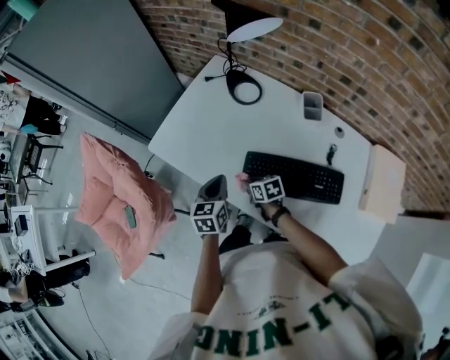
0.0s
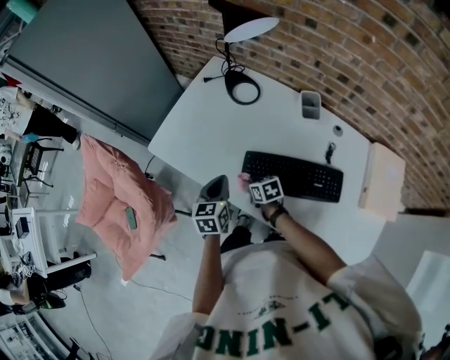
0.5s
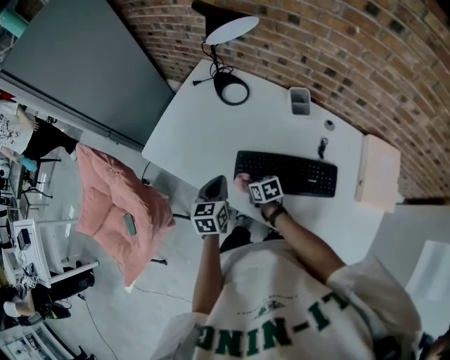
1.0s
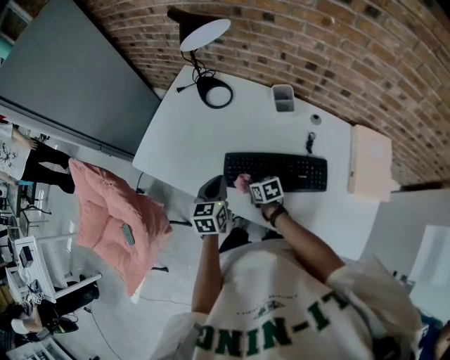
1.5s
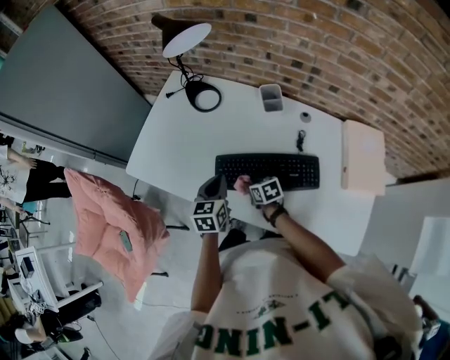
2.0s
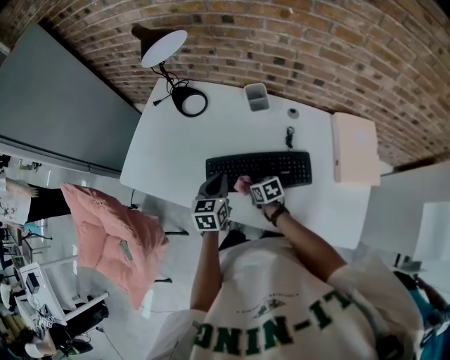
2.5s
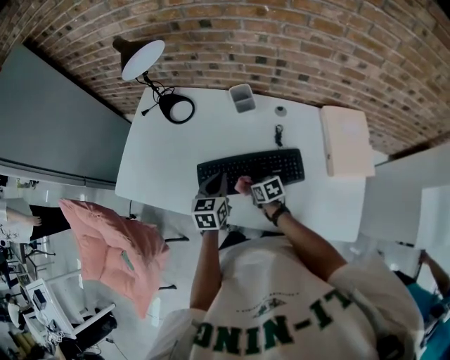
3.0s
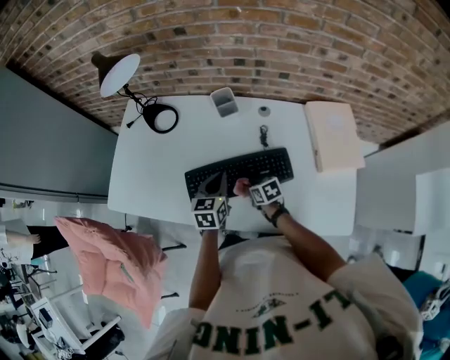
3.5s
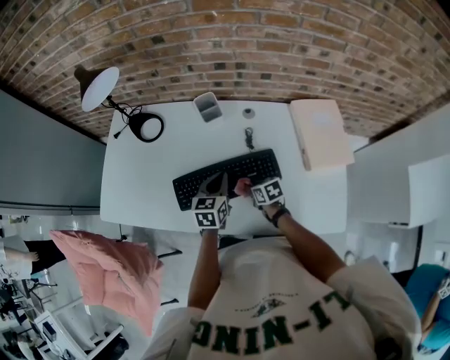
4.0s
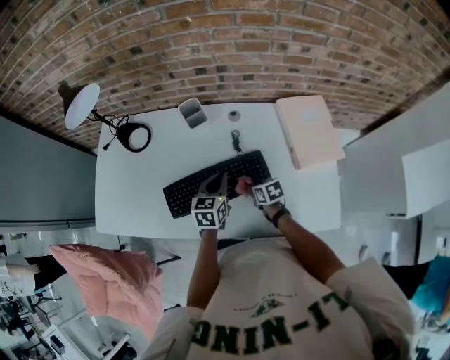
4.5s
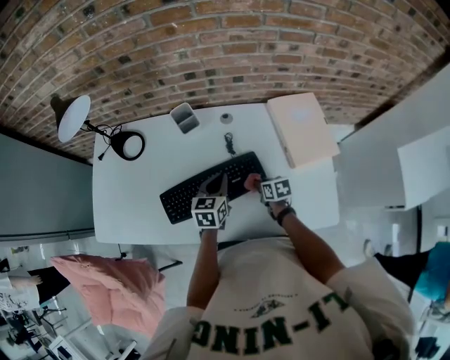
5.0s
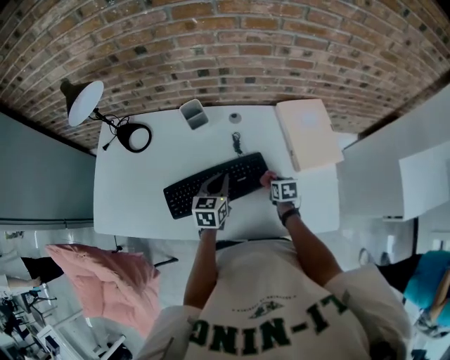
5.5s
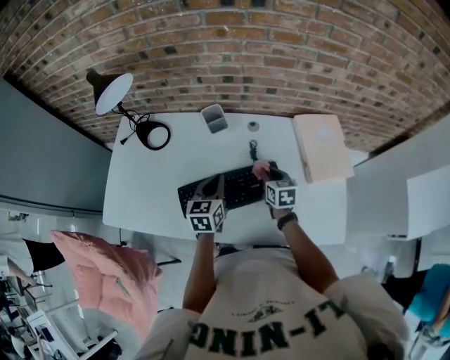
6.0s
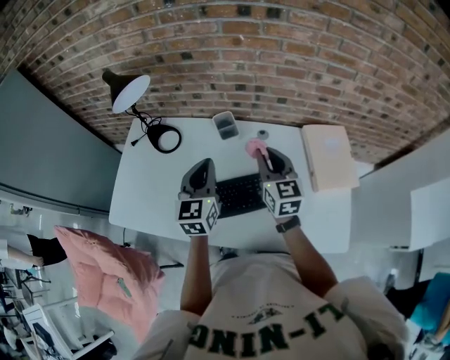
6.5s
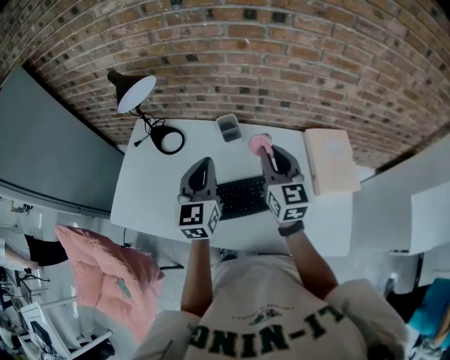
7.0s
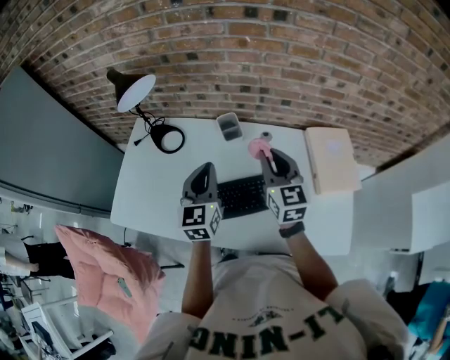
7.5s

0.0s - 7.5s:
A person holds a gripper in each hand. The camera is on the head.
0.0s - 2.0s: The grippers both shift to the right by some 10 cm.
2.0s - 4.0s: The two grippers go about 15 cm to the right. The left gripper changes its angle by about 20 degrees.
4.0s - 5.5s: The right gripper heads to the right, covering some 15 cm, and swivels roughly 30 degrees.
5.5s - 7.5s: The left gripper travels upward and to the left by roughly 25 cm, and rotates some 30 degrees; the right gripper goes some 40 cm upward and to the left, and angles its fingers upward, by some 50 degrees.

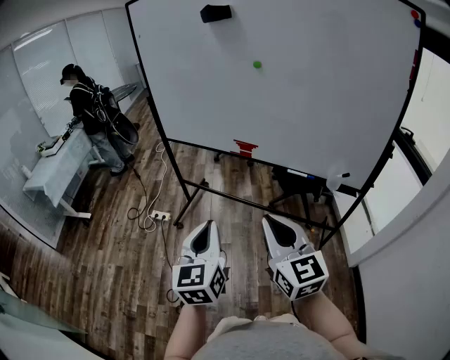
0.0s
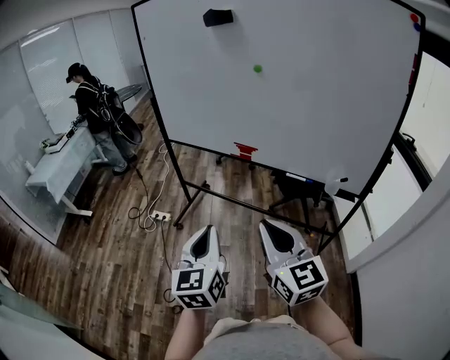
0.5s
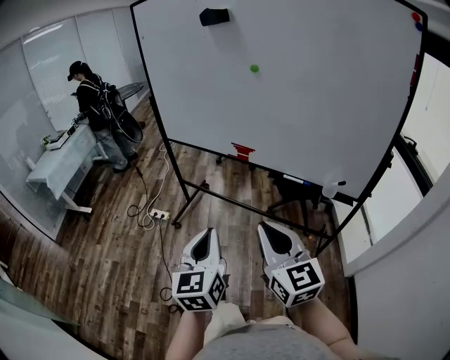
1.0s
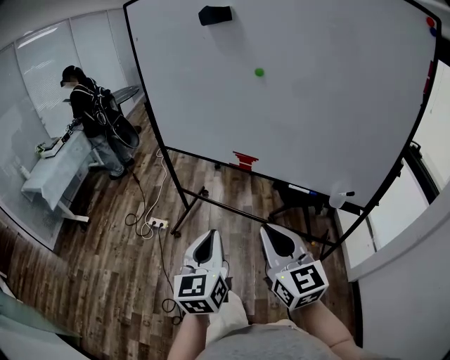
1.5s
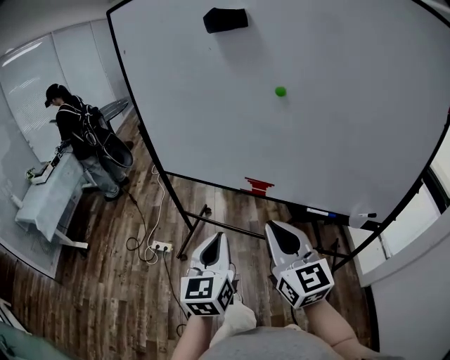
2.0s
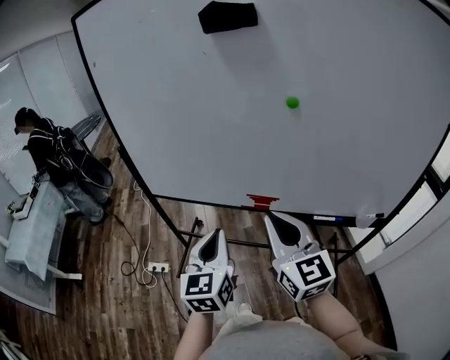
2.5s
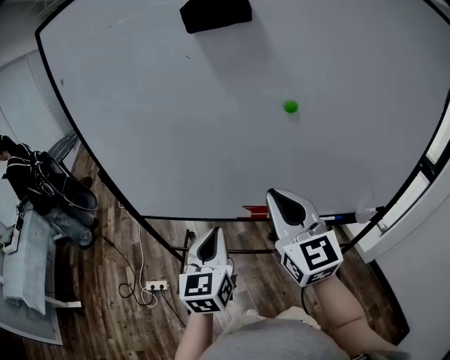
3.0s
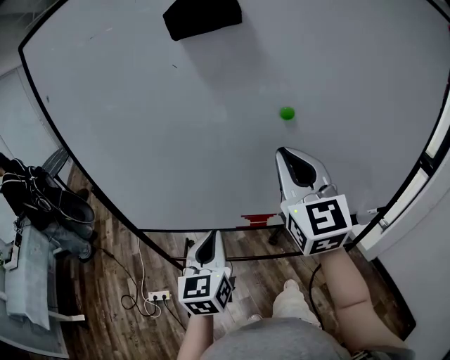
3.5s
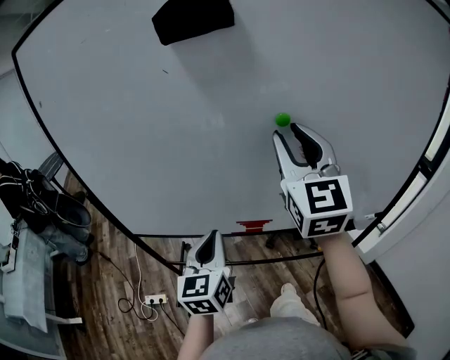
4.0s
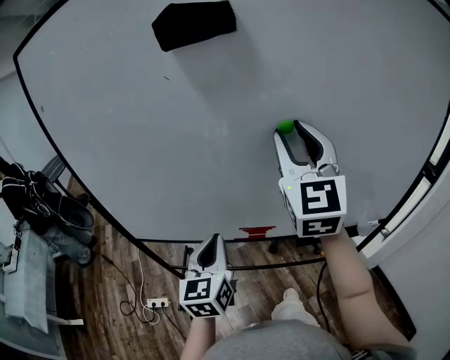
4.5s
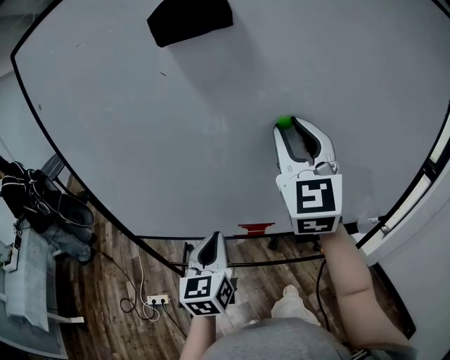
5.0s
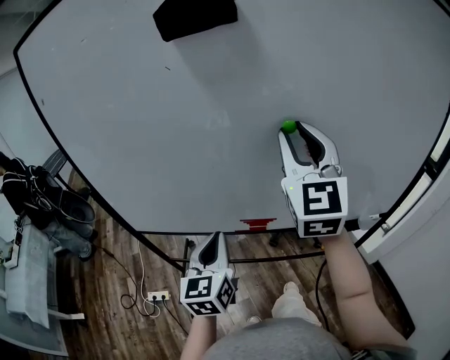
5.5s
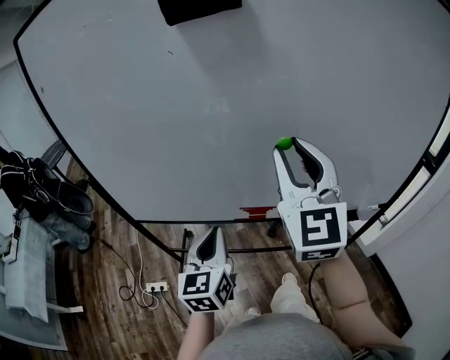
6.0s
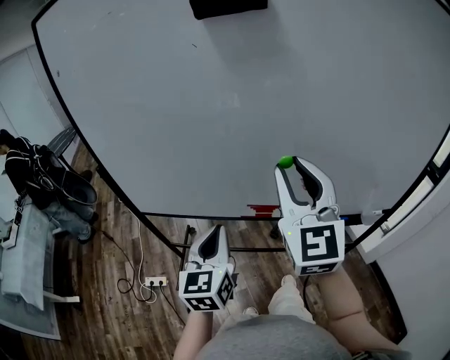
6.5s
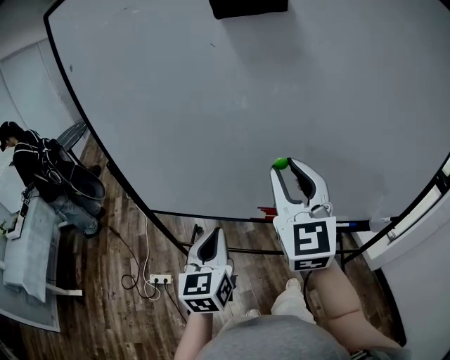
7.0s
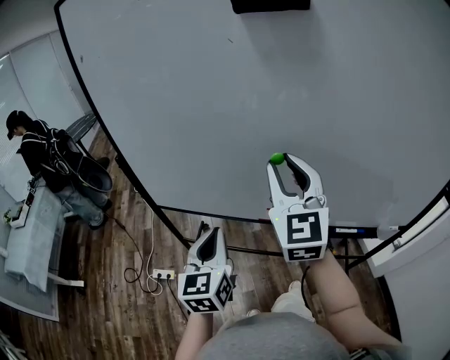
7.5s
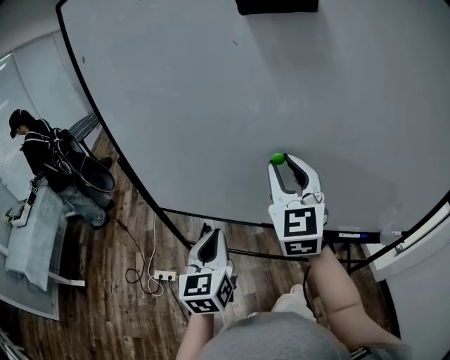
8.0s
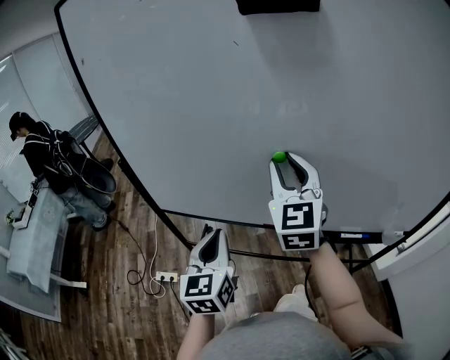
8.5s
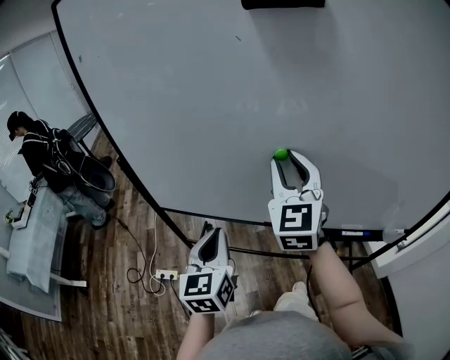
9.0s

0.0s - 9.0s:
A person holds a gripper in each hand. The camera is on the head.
0.0s - 2.0s: The grippers both shift forward by about 20 cm.
2.0s - 4.5s: The left gripper changes place by about 25 cm. Meanwhile the right gripper moves approximately 35 cm, rotates some 50 degrees, and opens its fingers.
4.5s - 7.0s: The right gripper heads downward, to the left and backward, covering roughly 15 cm. The left gripper moves to the left and backward, approximately 5 cm.
7.0s - 9.0s: The right gripper travels forward by approximately 10 cm.

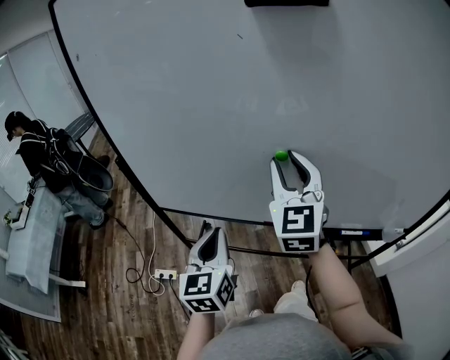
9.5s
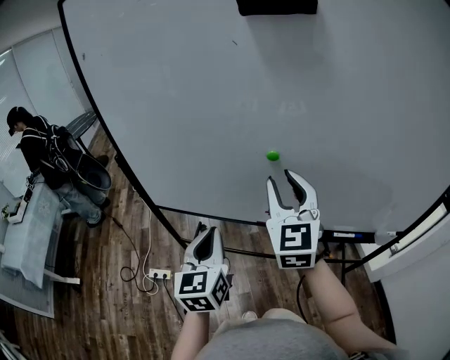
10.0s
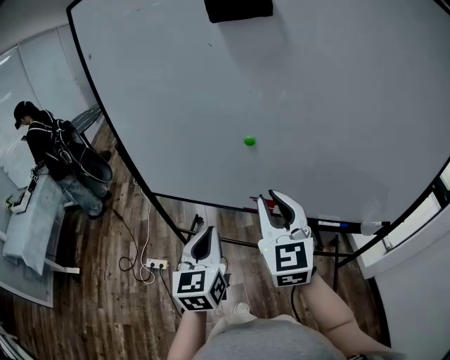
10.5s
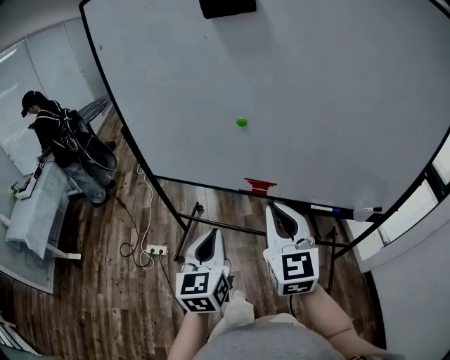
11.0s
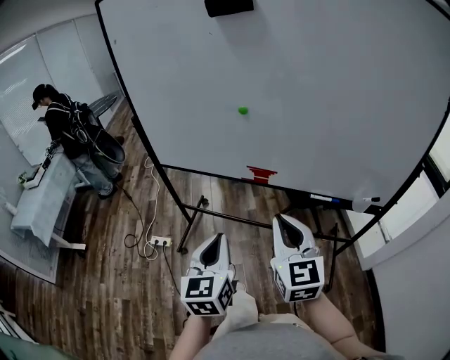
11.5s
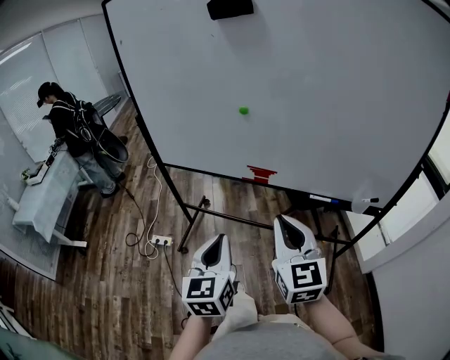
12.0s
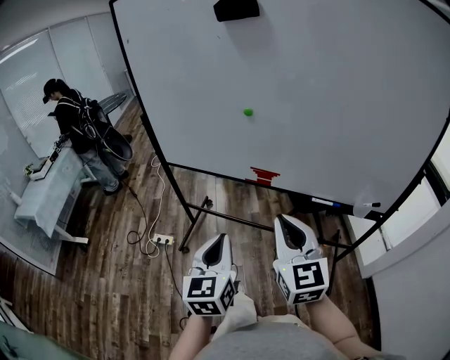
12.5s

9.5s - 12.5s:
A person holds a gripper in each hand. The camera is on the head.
9.5s - 11.0s: The left gripper goes some 20 cm backward and to the right, while the right gripper is displaced backward by roughly 25 cm, and closes its fingers.
11.0s - 12.5s: The two grippers go some 10 cm backward.

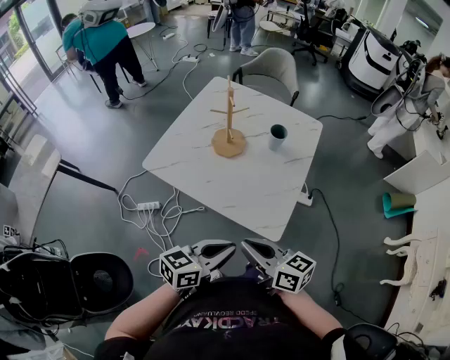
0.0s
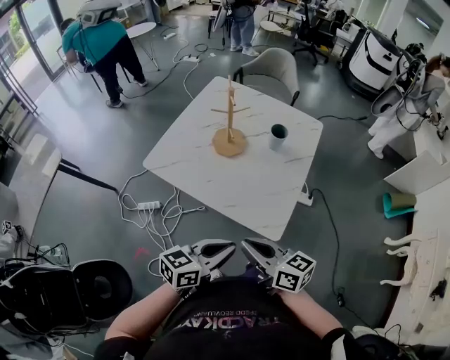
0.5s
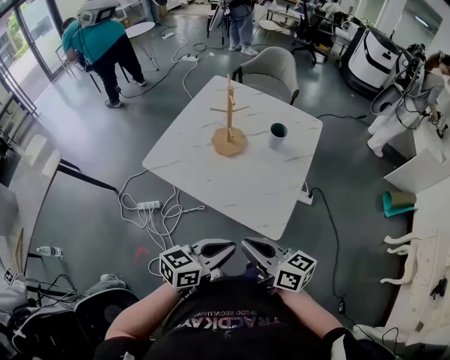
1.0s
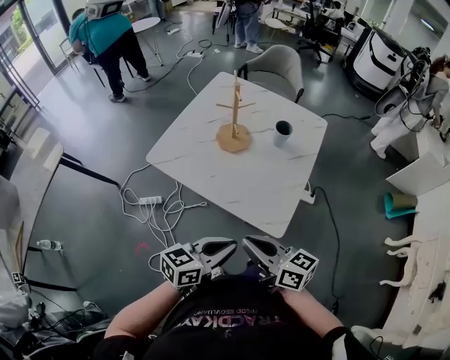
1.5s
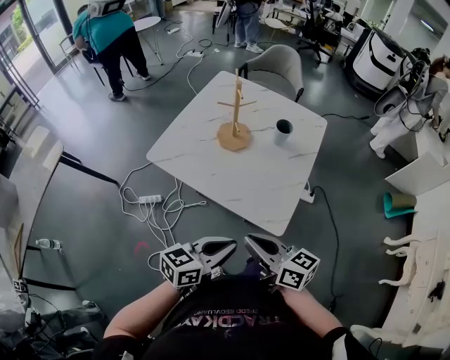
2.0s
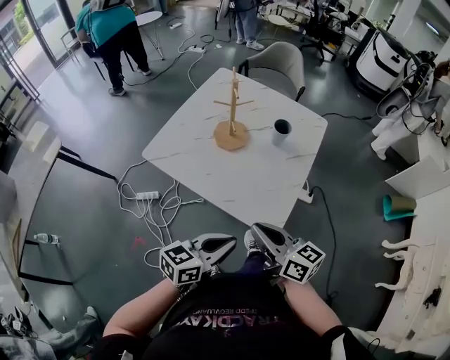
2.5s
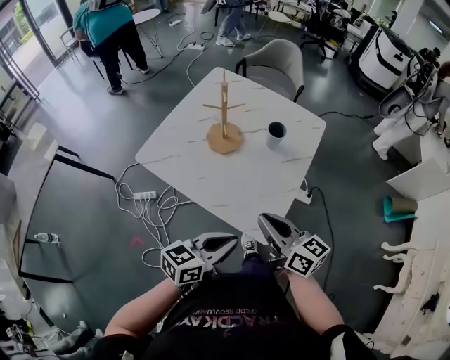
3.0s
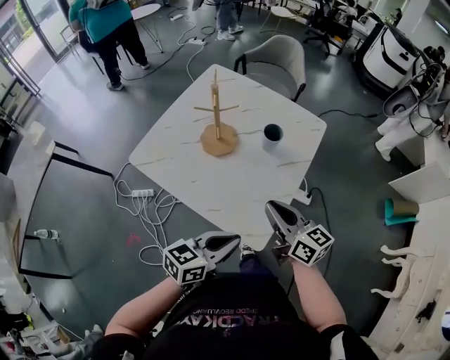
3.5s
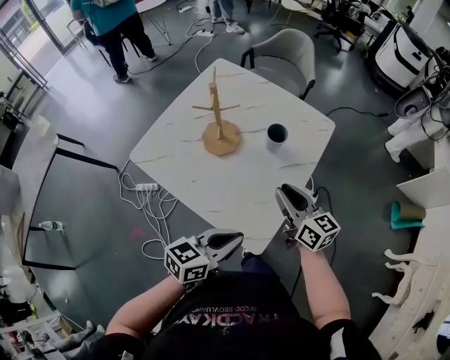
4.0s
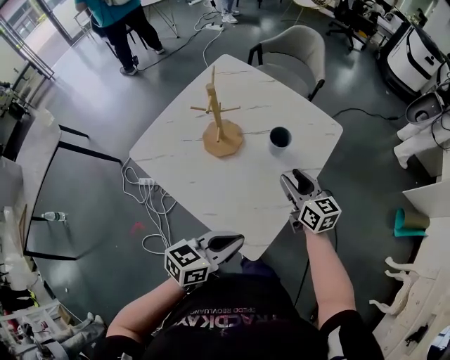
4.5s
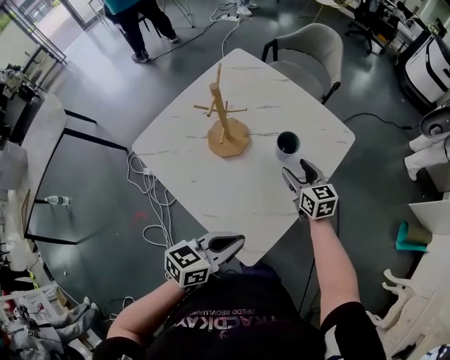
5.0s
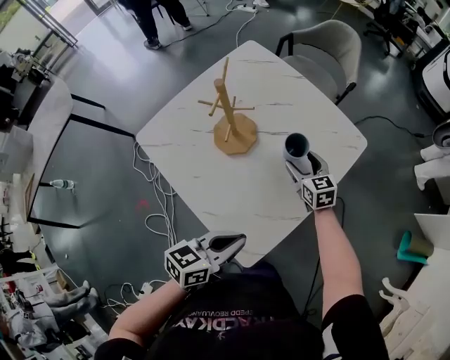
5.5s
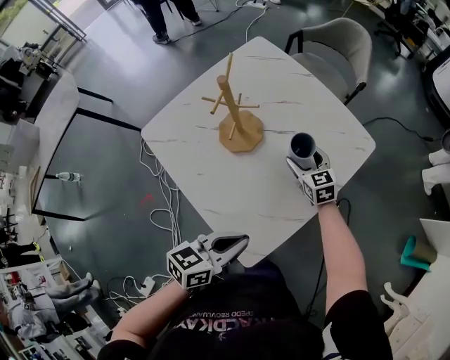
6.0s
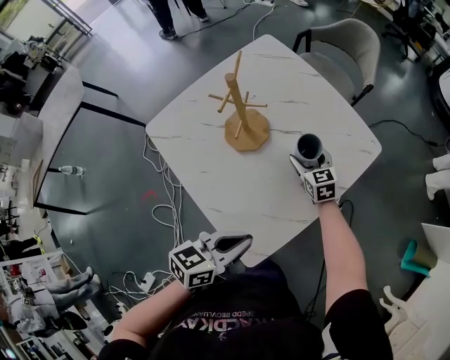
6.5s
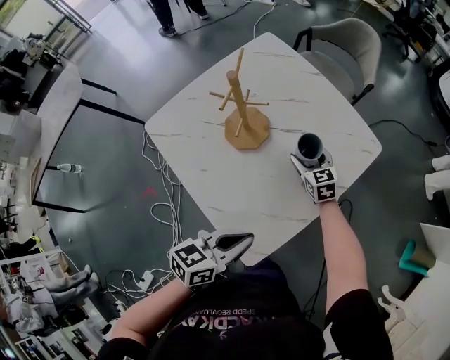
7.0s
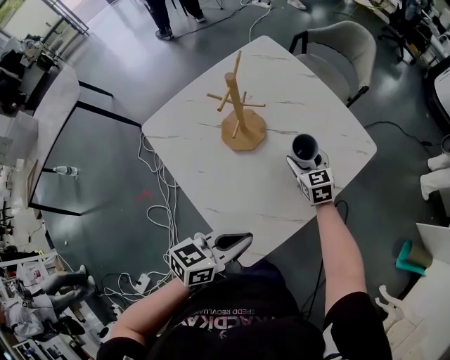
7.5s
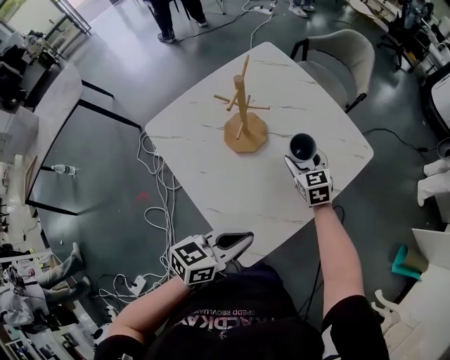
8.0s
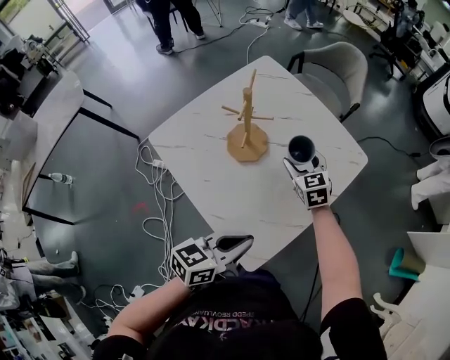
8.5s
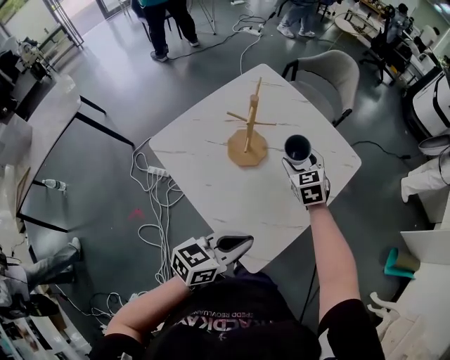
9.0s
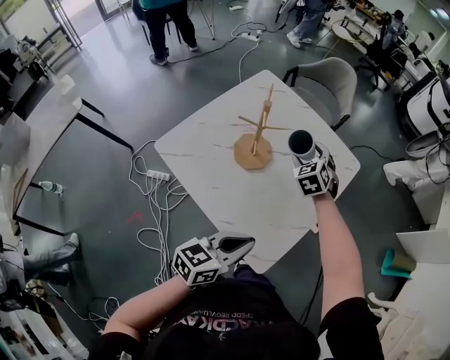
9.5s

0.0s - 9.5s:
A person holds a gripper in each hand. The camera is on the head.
0.0s - 2.0s: The grippers stay close to where they were, moving slightly.
2.0s - 4.0s: The right gripper heads forward and to the right, covering approximately 30 cm, while the left gripper shifts approximately 15 cm forward and to the right.
4.0s - 5.5s: The right gripper heads forward and downward, covering approximately 25 cm, changes its angle by approximately 30 degrees, and opens, while the left gripper travels forward by approximately 5 cm.
5.5s - 7.5s: There are only small adjustments of the grippers.
7.5s - 9.5s: The left gripper heads to the left and upward, covering about 10 cm, while the right gripper is displaced upward by about 15 cm, and rotates about 30 degrees.
